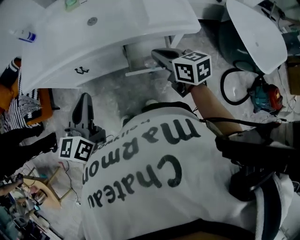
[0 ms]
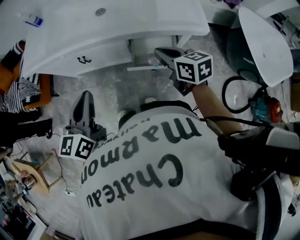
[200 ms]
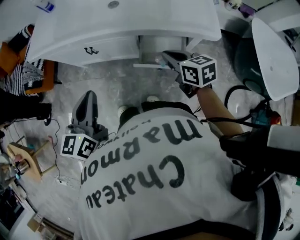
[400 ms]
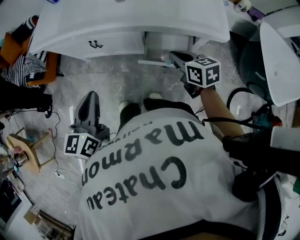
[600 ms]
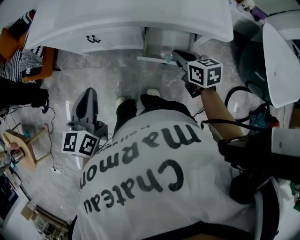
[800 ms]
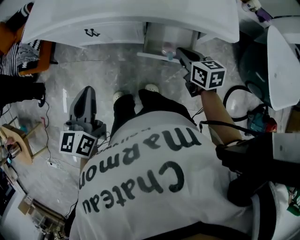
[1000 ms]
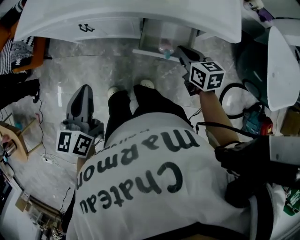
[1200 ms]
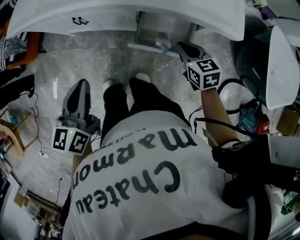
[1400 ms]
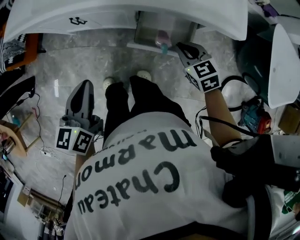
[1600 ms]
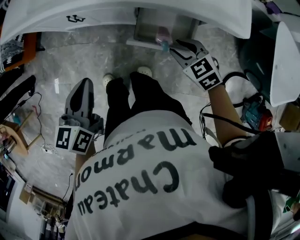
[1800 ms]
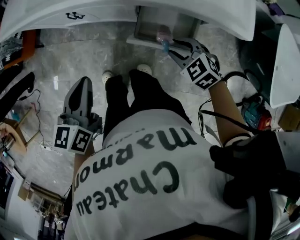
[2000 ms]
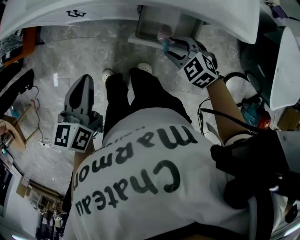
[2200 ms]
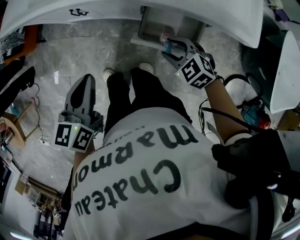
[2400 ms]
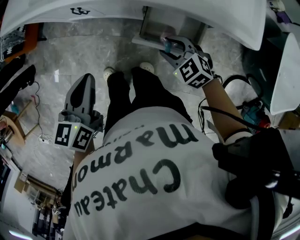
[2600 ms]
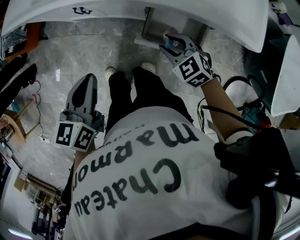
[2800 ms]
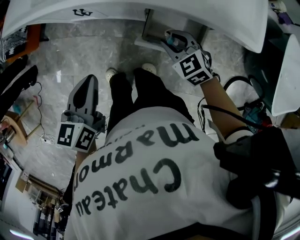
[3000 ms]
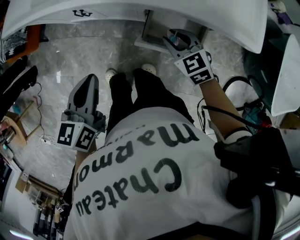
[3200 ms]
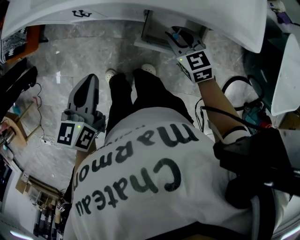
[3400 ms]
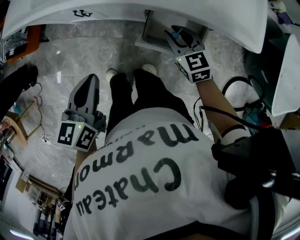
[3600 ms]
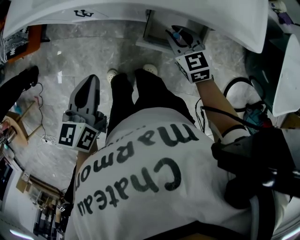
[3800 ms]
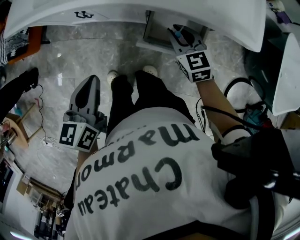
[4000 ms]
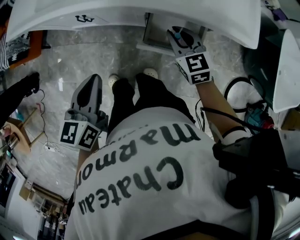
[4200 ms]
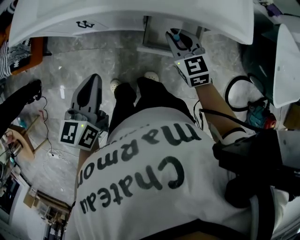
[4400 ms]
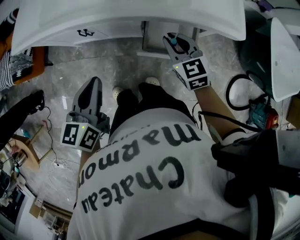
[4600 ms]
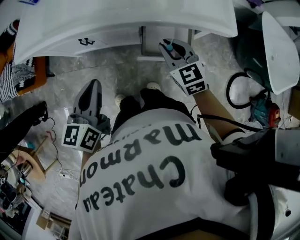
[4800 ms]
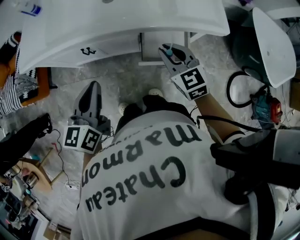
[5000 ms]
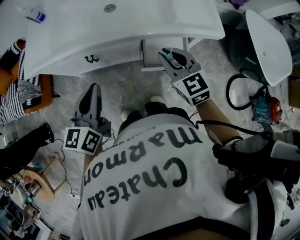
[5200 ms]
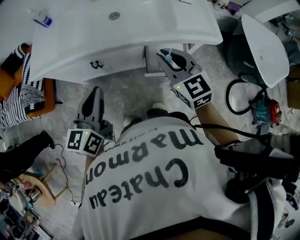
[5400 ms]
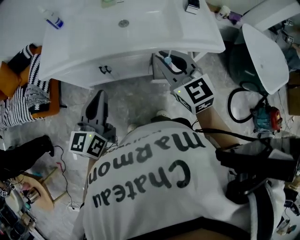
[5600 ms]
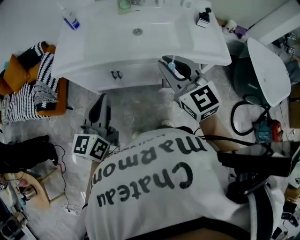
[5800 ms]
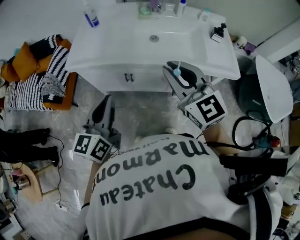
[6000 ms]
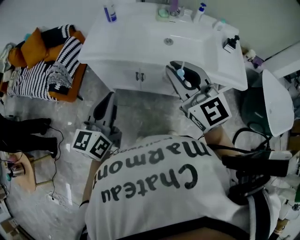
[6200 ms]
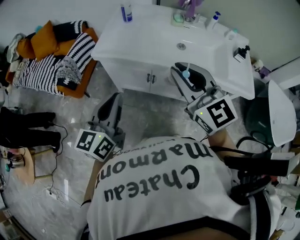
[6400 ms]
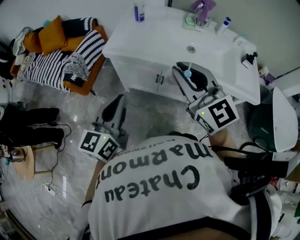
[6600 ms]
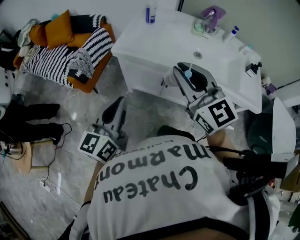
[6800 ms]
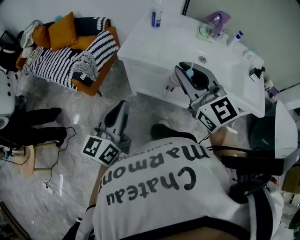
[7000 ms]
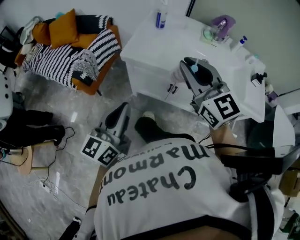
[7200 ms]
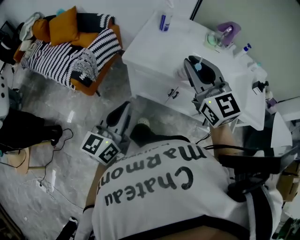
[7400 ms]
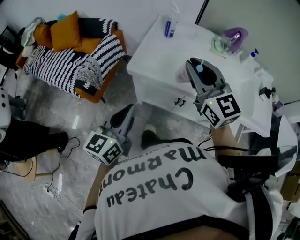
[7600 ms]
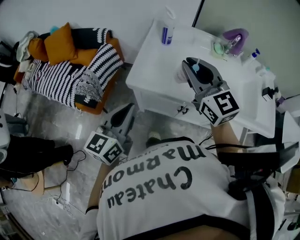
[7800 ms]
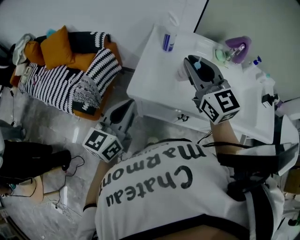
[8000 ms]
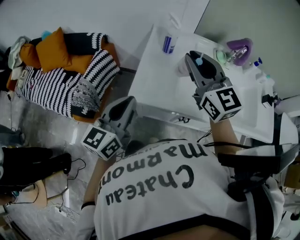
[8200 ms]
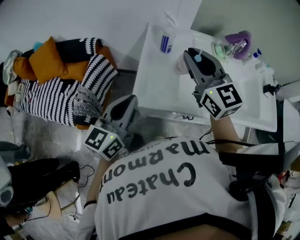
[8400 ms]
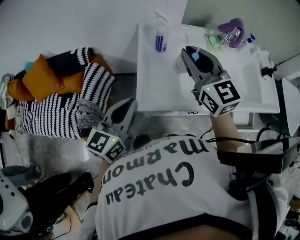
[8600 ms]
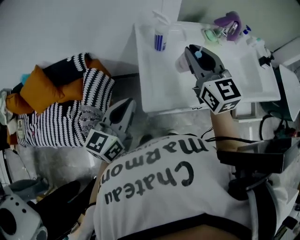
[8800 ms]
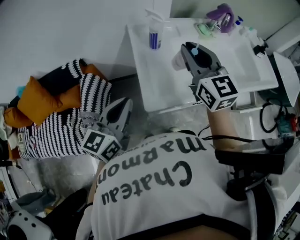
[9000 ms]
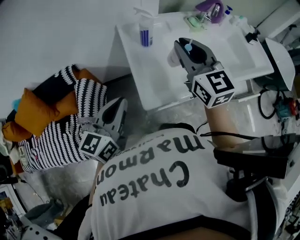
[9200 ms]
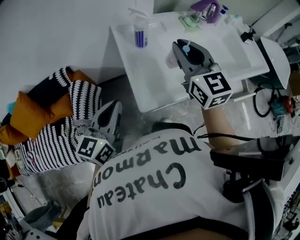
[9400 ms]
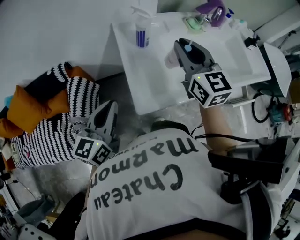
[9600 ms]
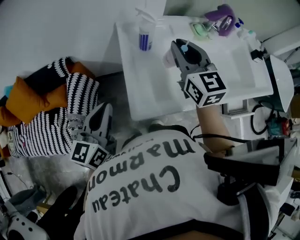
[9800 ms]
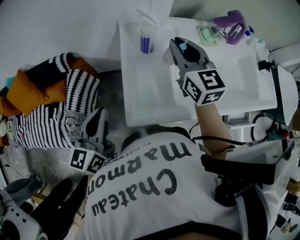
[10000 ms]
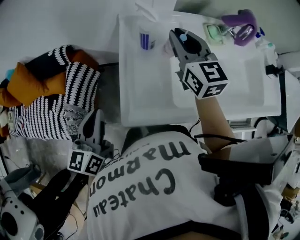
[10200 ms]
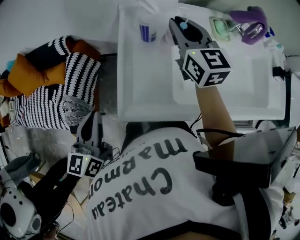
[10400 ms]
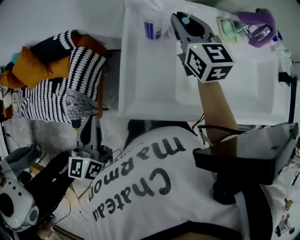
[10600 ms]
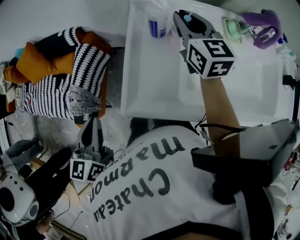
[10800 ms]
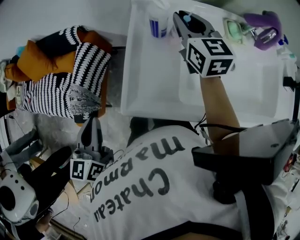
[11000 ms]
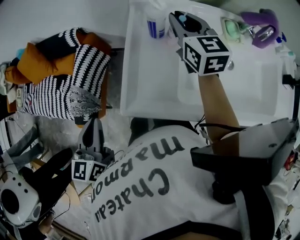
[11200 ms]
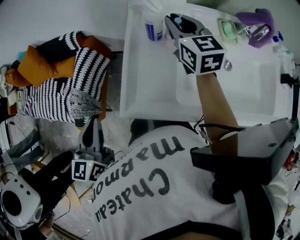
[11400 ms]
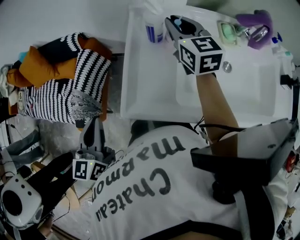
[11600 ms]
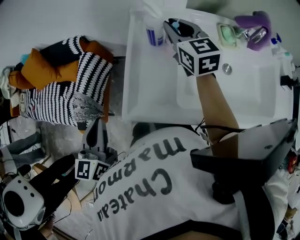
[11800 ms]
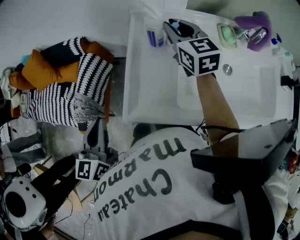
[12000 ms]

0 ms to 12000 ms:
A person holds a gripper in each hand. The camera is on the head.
0 ms to 1600 ms: Both grippers move downward, roughly 15 cm. The right gripper rotates roughly 40 degrees.
1600 ms to 3000 ms: The right gripper moves to the left and forward, about 10 cm, and opens.
3000 ms to 4400 ms: The right gripper moves upward, approximately 5 cm, and changes its angle by about 30 degrees.
4400 ms to 6000 ms: The left gripper is displaced upward and to the left by approximately 20 cm, and rotates some 20 degrees. Meanwhile the right gripper goes about 35 cm upward and to the left, and changes its angle by some 30 degrees.
6000 ms to 7600 ms: The two grippers go roughly 30 cm to the left and forward.
7600 ms to 9000 ms: The left gripper ends up some 25 cm from where it was, and changes its angle by approximately 30 degrees. The right gripper changes place by about 20 cm, and rotates some 30 degrees.
9000 ms to 10400 ms: The left gripper heads downward, covering about 5 cm, and rotates some 30 degrees. The right gripper heads forward and downward, covering approximately 20 cm.
10400 ms to 12000 ms: The grippers make only small movements.

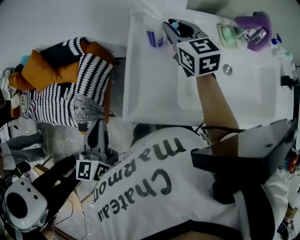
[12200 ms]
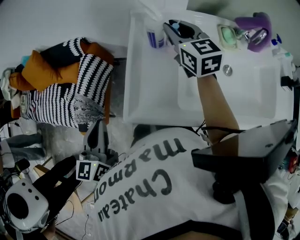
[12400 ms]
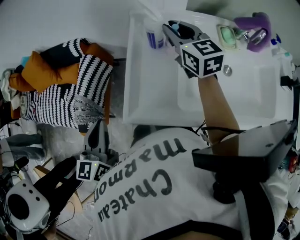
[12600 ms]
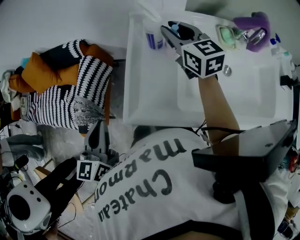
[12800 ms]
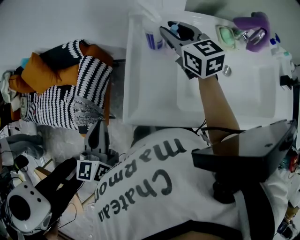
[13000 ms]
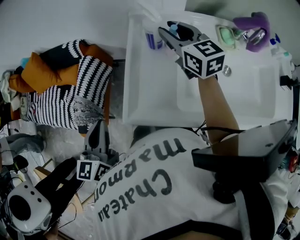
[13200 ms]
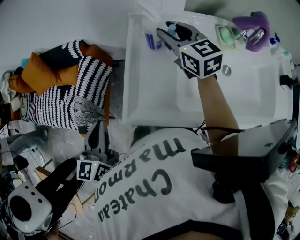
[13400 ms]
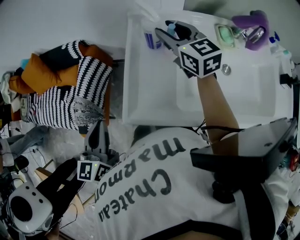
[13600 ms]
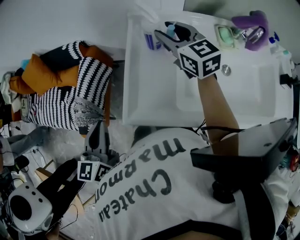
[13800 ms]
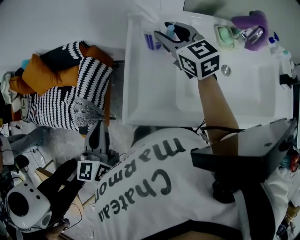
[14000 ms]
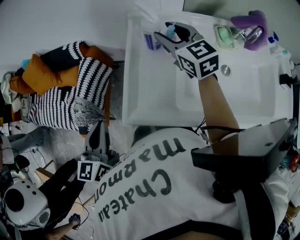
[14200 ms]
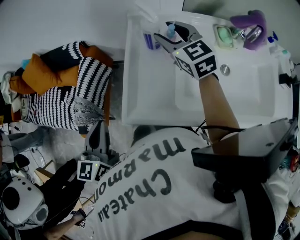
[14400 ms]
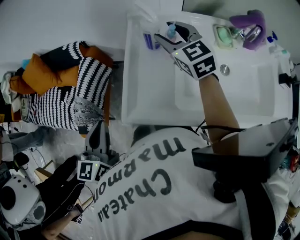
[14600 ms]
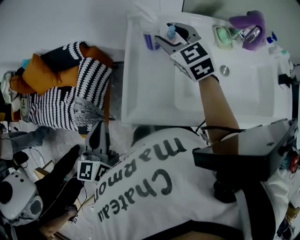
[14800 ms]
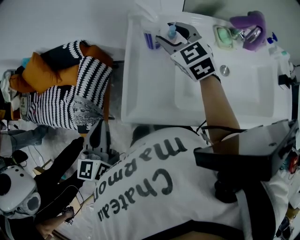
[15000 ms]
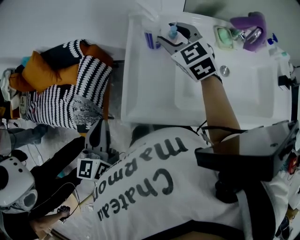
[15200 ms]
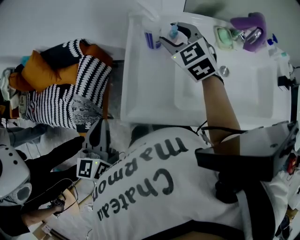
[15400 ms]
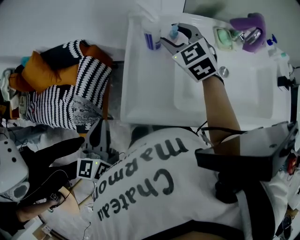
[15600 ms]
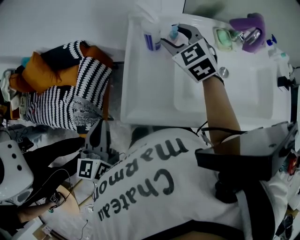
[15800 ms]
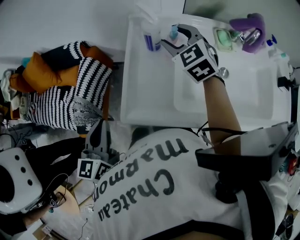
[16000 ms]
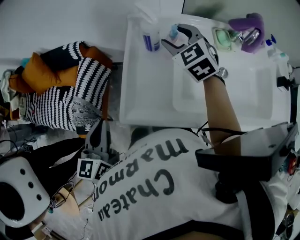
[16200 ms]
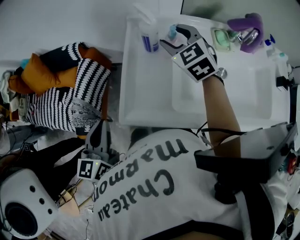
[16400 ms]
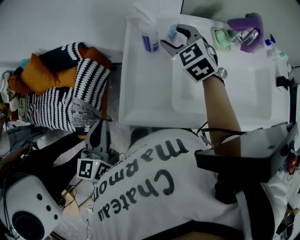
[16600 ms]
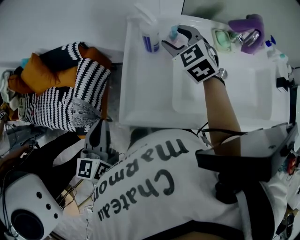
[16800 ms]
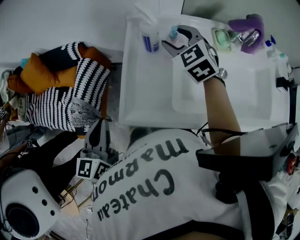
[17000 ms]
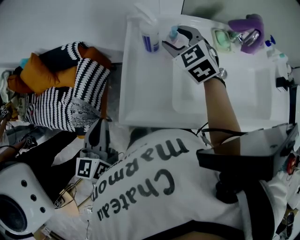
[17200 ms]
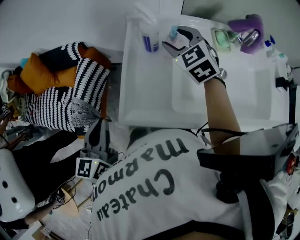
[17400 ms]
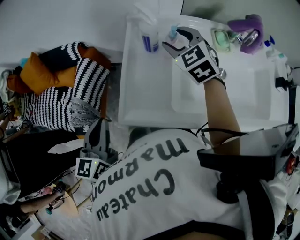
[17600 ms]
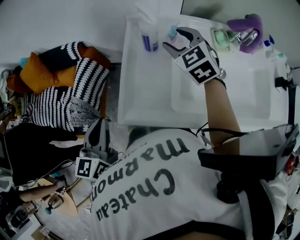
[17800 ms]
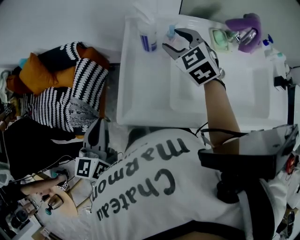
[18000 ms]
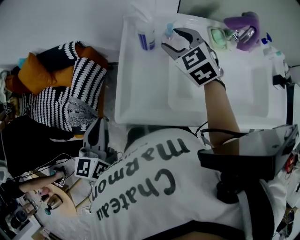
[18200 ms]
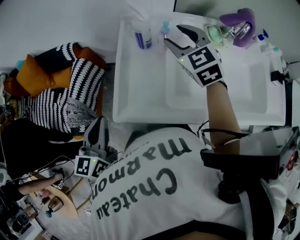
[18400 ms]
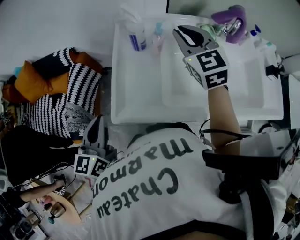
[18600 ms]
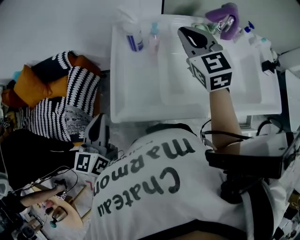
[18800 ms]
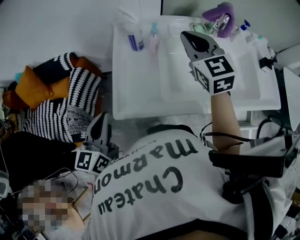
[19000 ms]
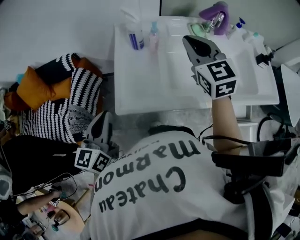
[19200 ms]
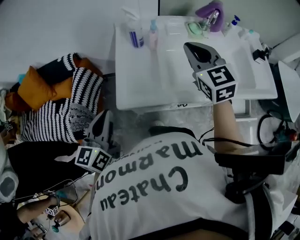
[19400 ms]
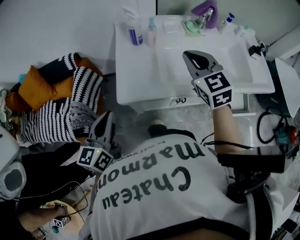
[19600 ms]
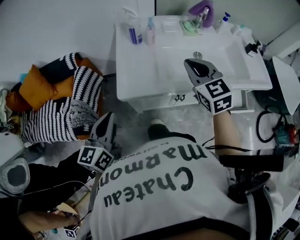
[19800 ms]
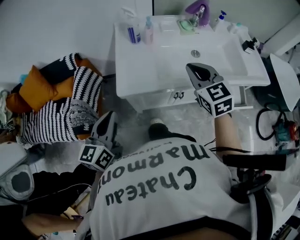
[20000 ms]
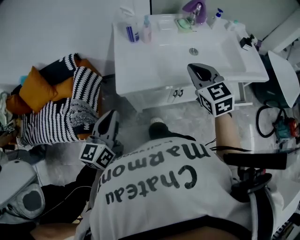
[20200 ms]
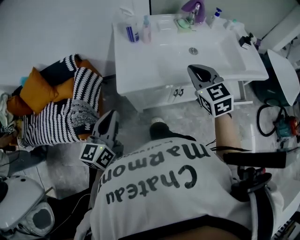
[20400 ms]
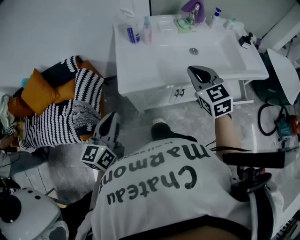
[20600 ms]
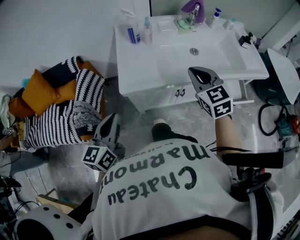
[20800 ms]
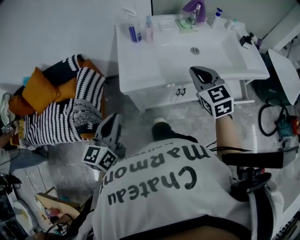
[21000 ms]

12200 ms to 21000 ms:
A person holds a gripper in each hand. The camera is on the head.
12200 ms to 13600 ms: The right gripper opens.
13600 ms to 15200 ms: The right gripper turns by approximately 20 degrees.
15200 ms to 18000 ms: The grippers move only a little.
18000 ms to 19600 ms: The left gripper travels backward by roughly 10 cm. Meanwhile the right gripper goes some 20 cm backward, rotates some 20 degrees, and closes.
19600 ms to 21000 ms: The right gripper goes roughly 10 cm backward. Meanwhile the left gripper moves backward, some 5 cm.

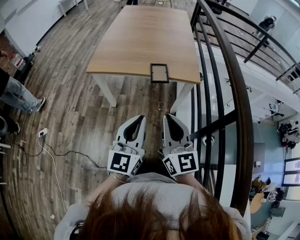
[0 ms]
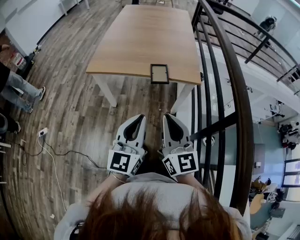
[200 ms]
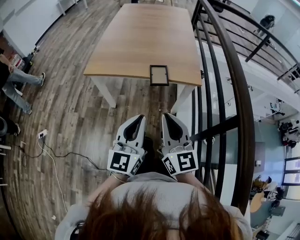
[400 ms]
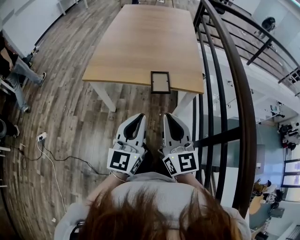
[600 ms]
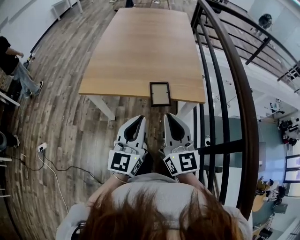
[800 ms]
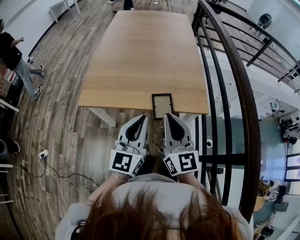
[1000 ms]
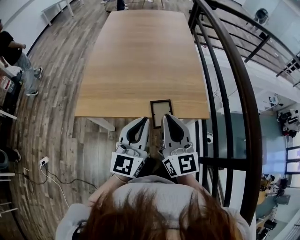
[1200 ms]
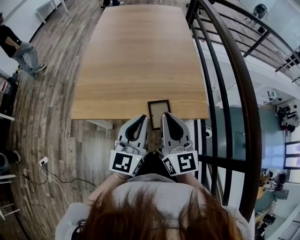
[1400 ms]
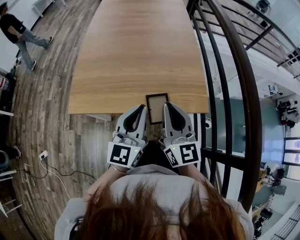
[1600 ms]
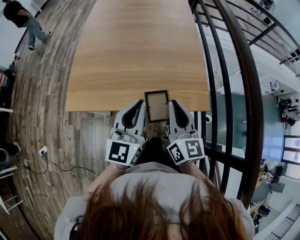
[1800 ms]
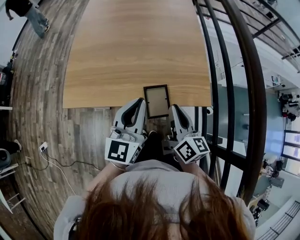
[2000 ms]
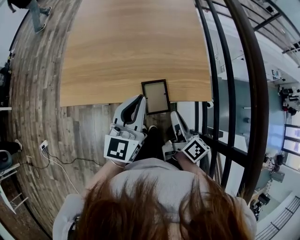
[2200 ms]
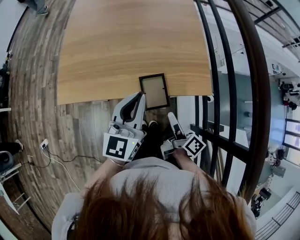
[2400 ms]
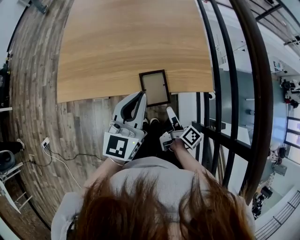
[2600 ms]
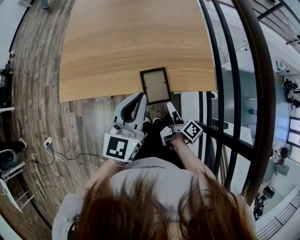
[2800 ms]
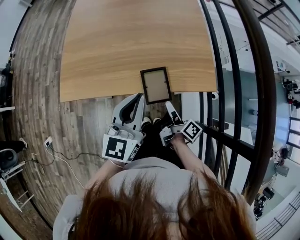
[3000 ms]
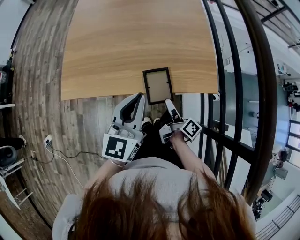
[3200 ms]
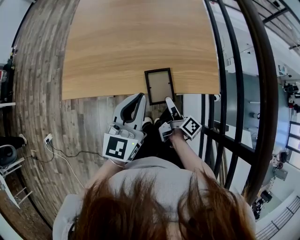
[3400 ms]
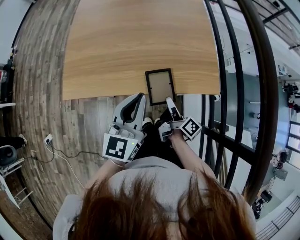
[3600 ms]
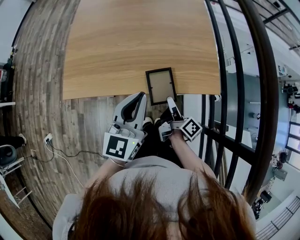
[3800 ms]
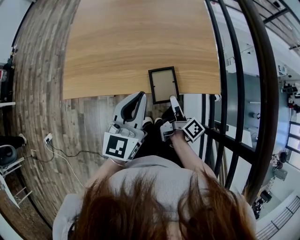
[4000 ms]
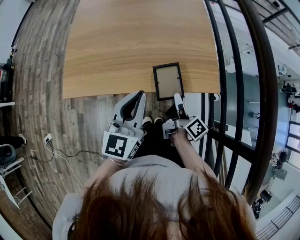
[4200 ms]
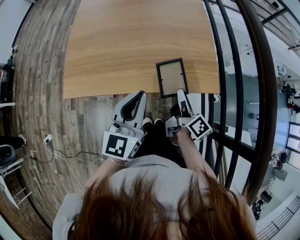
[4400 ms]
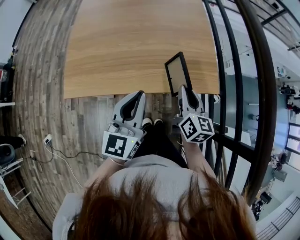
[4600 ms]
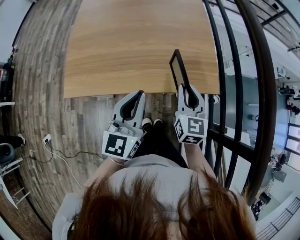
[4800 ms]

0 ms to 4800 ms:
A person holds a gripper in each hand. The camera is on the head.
0 ms to 1600 ms: Both grippers travel together forward, roughly 35 cm.
1600 ms to 3200 ms: The right gripper moves downward, some 25 cm, twists approximately 80 degrees clockwise, seen from behind, and opens up, while the left gripper is displaced downward by about 5 cm.
3200 ms to 4800 ms: The right gripper travels upward by approximately 15 cm, and twists roughly 80 degrees counterclockwise, seen from behind.
